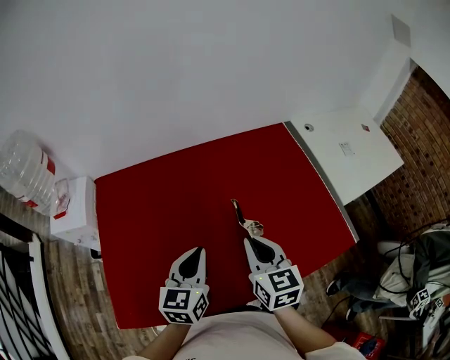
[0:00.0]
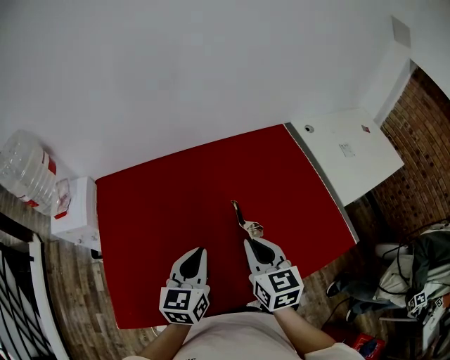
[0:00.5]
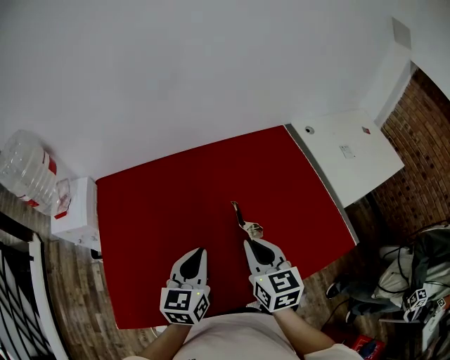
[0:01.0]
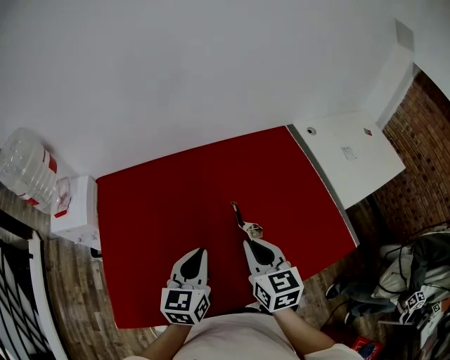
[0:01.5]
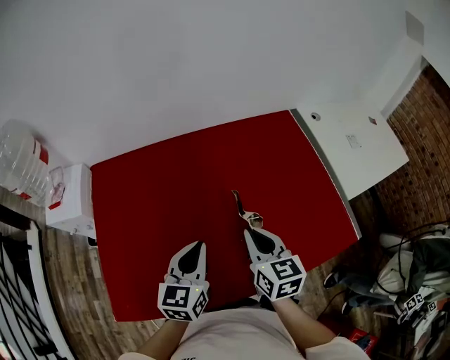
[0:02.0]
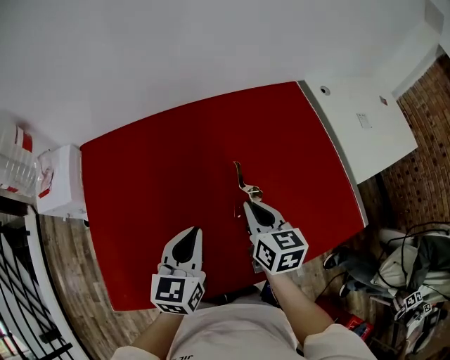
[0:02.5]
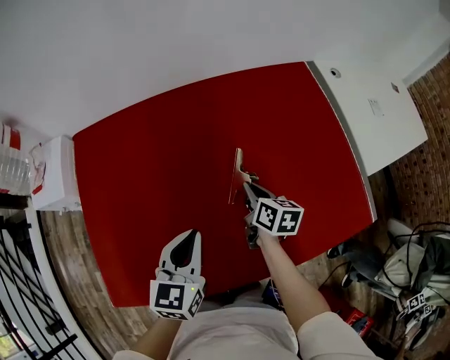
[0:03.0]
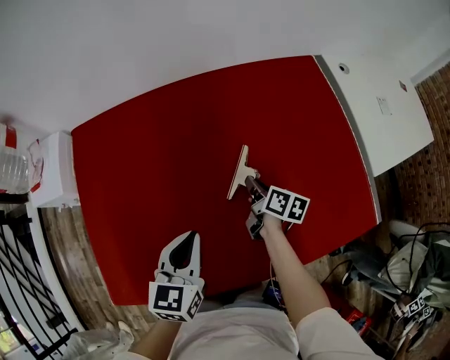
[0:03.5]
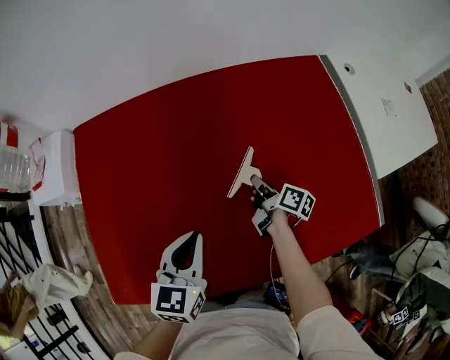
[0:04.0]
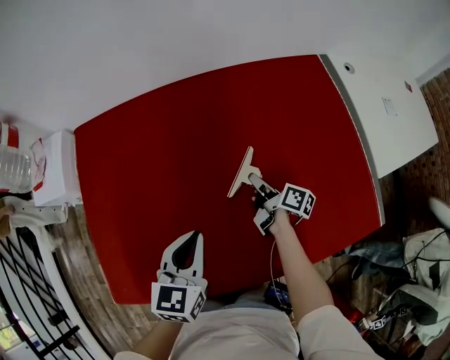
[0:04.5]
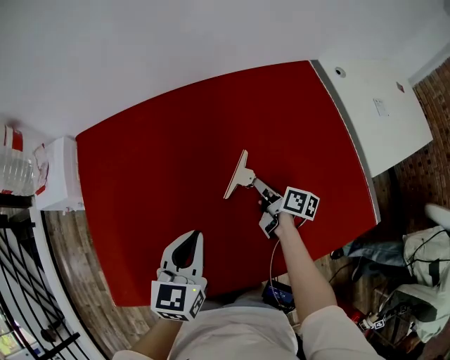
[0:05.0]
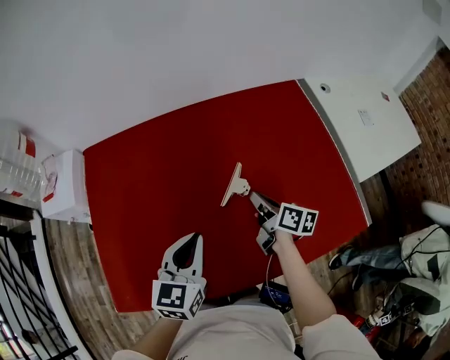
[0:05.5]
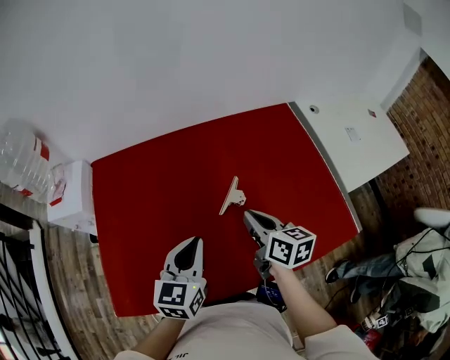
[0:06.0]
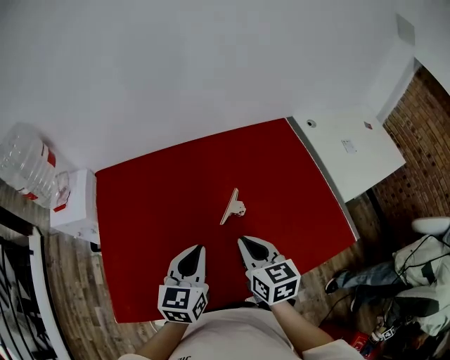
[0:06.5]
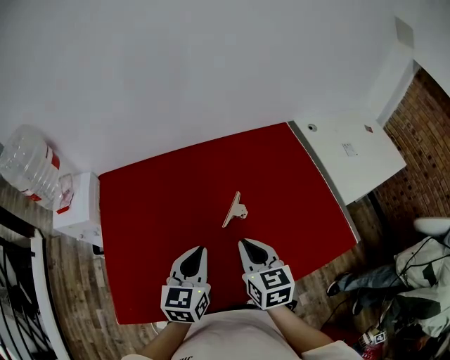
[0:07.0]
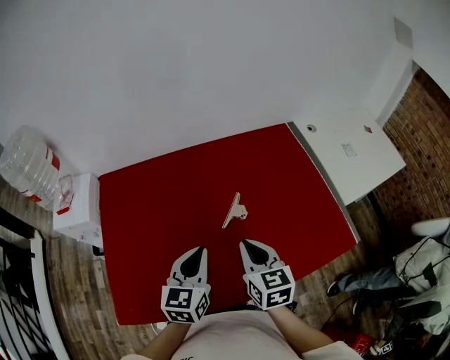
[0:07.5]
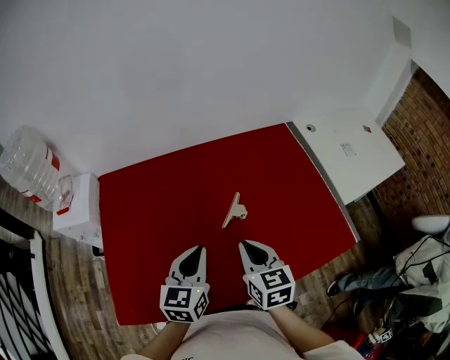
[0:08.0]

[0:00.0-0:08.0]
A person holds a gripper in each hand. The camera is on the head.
0:00.0 to 0:02.0: There are only small adjustments of the grippers.
0:02.0 to 0:04.0: The left gripper travels downward by roughly 10 cm, while the right gripper heads downward and forward, covering approximately 30 cm, and rolls clockwise, seen from behind, by roughly 50 degrees.
0:04.0 to 0:06.0: The left gripper heads upward, covering some 10 cm; the right gripper heads upward and backward, covering some 25 cm, rotates some 40 degrees, and opens, then closes again.
0:06.0 to 0:08.0: The right gripper shifts approximately 5 cm backward, and rotates about 20 degrees.

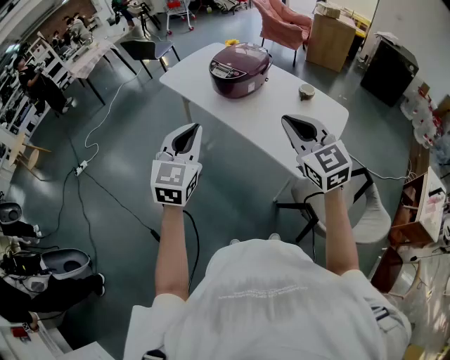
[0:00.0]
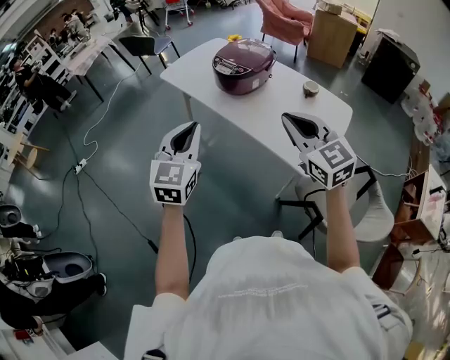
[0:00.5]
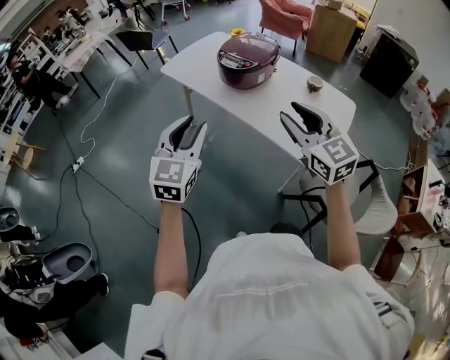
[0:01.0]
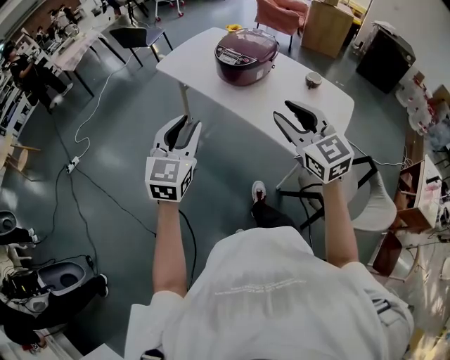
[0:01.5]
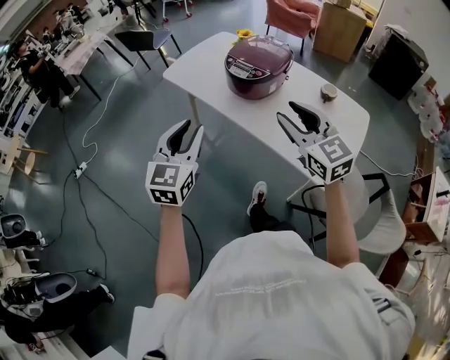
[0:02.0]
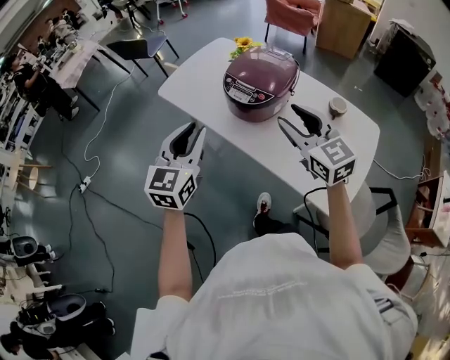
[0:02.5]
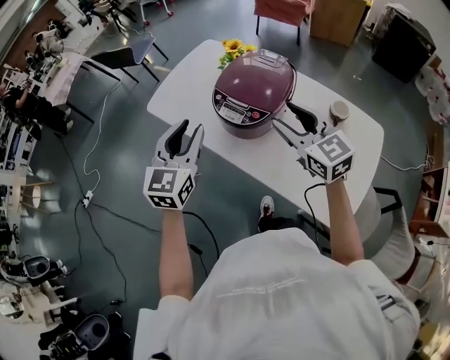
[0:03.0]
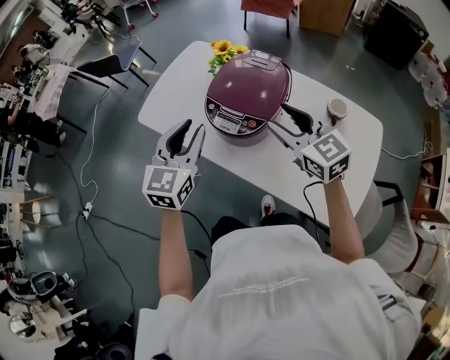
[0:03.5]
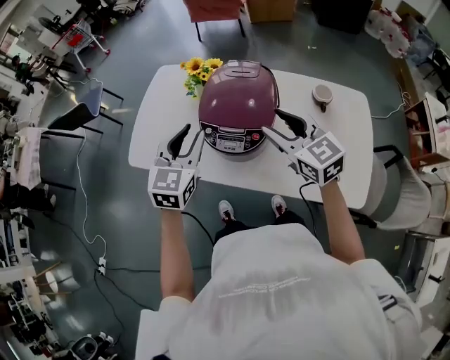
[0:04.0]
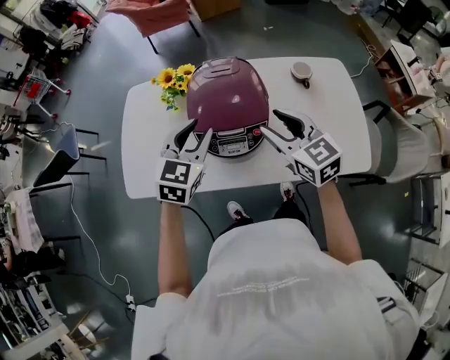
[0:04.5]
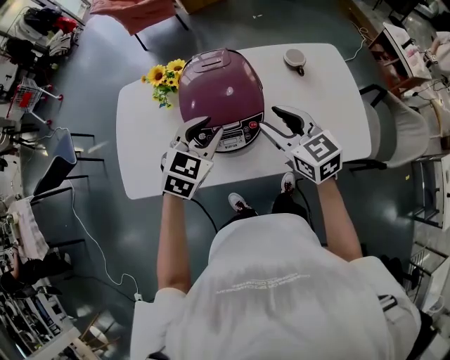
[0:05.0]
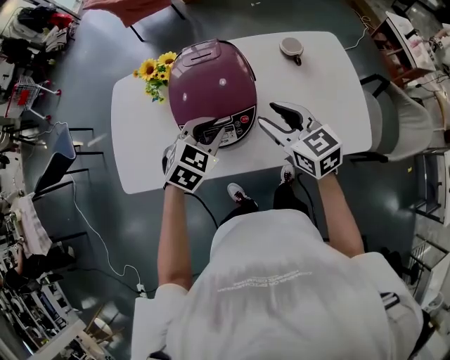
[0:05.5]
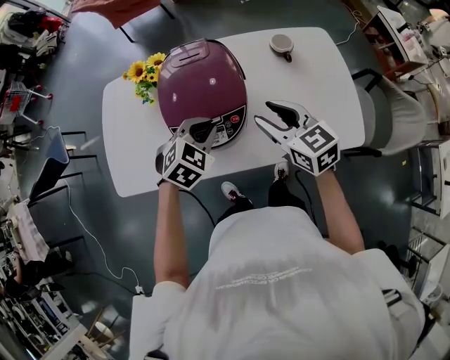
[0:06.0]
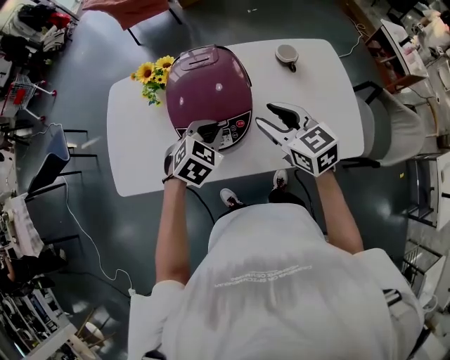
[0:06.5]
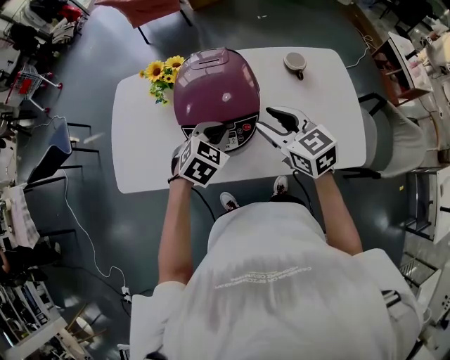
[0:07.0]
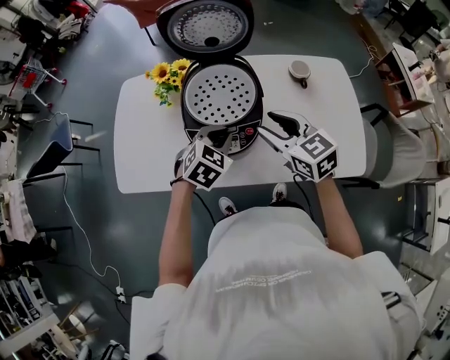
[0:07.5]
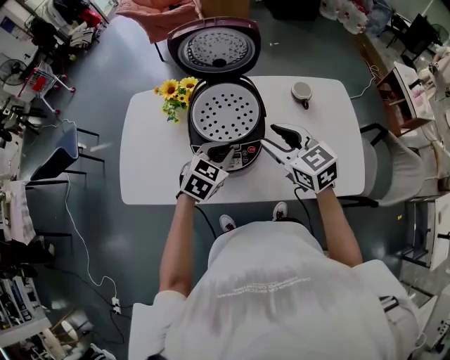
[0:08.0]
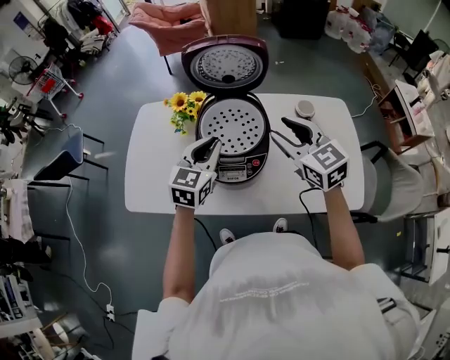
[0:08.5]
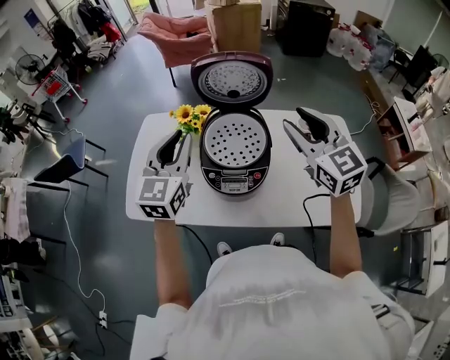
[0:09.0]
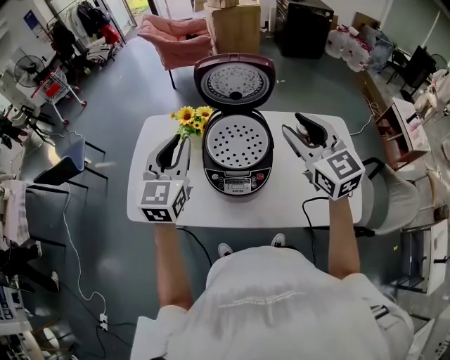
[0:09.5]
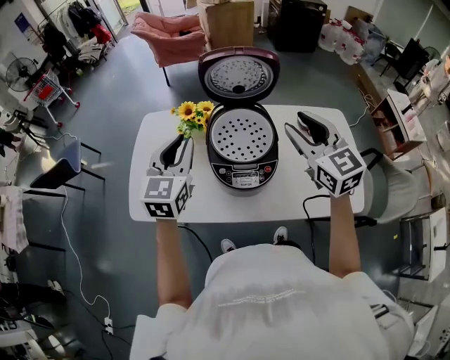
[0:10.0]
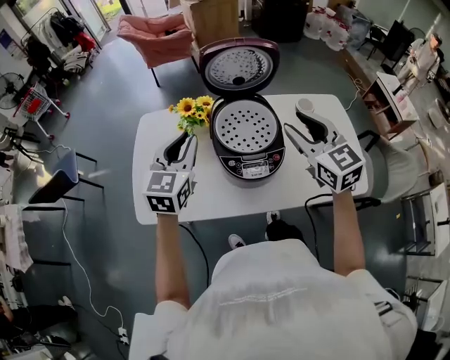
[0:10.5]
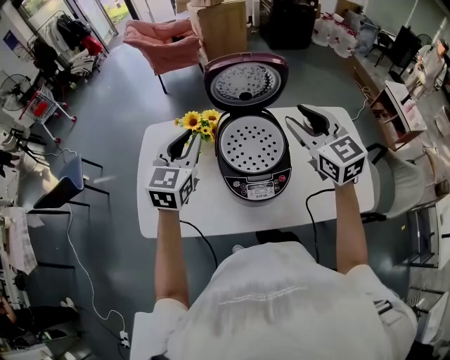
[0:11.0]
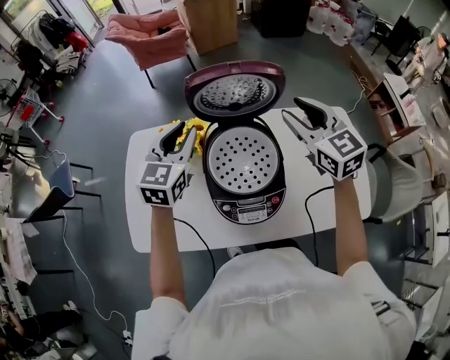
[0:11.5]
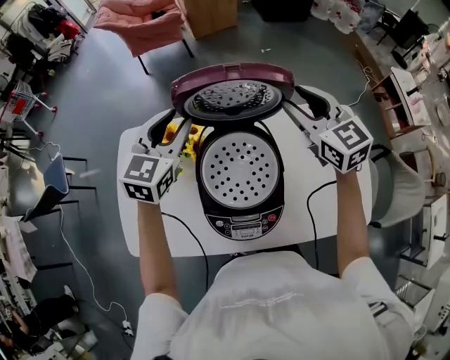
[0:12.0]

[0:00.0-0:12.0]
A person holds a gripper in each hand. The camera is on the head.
0:00.0 to 0:02.0: The two grippers go roughly 15 cm forward and to the left.
0:02.0 to 0:04.0: Both grippers move forward, approximately 35 cm. The left gripper changes its angle by about 30 degrees. The right gripper rotates approximately 20 degrees.
0:04.0 to 0:06.0: The right gripper heads downward, covering some 5 cm, and swivels approximately 20 degrees. The left gripper heads downward, covering about 15 cm, and swivels approximately 50 degrees.
0:06.0 to 0:08.0: There are only small adjustments of the grippers.
0:08.0 to 0:10.0: The left gripper heads upward and to the left, covering roughly 25 cm, and rotates some 40 degrees, while the right gripper moves upward, roughly 15 cm.
0:10.0 to 0:12.0: The two grippers go some 20 cm forward.

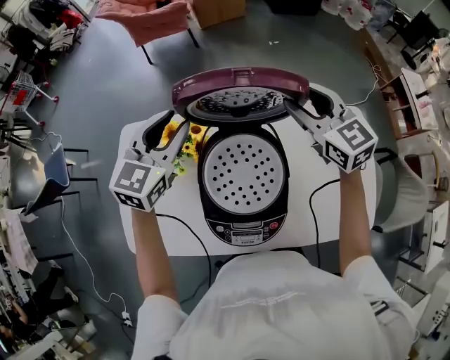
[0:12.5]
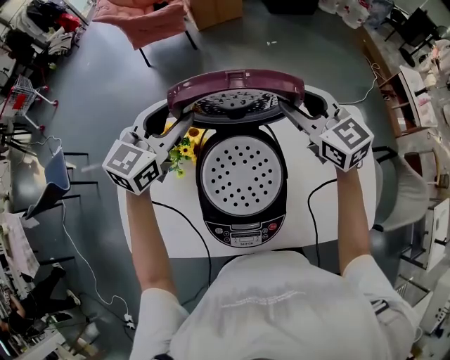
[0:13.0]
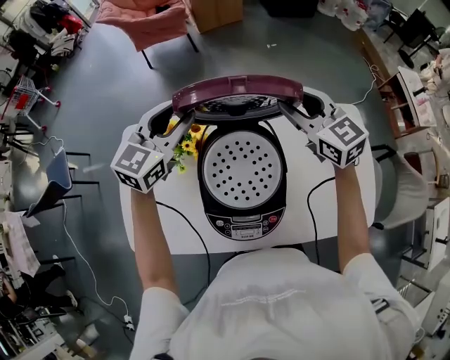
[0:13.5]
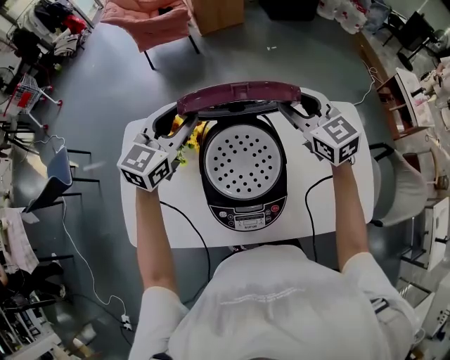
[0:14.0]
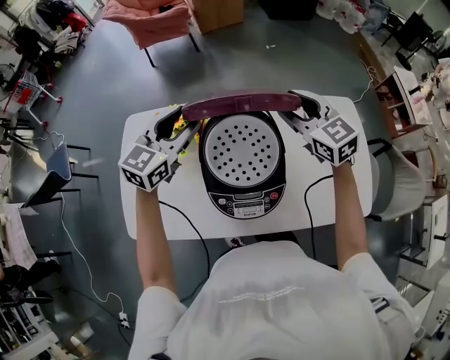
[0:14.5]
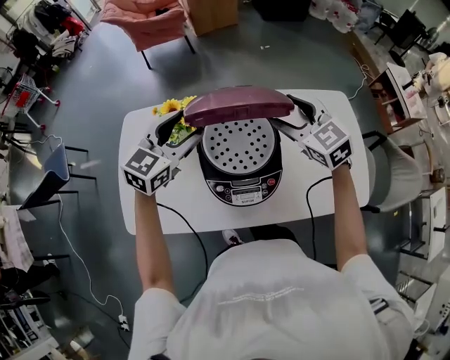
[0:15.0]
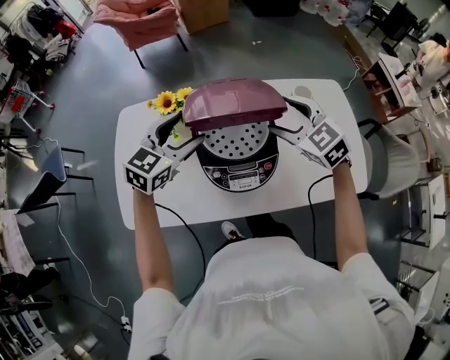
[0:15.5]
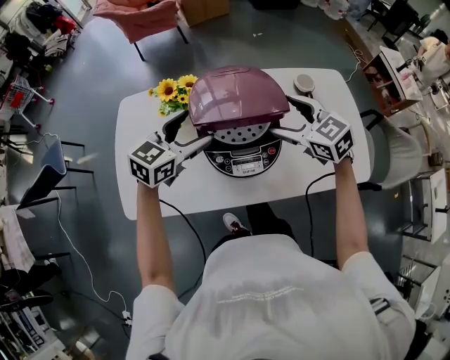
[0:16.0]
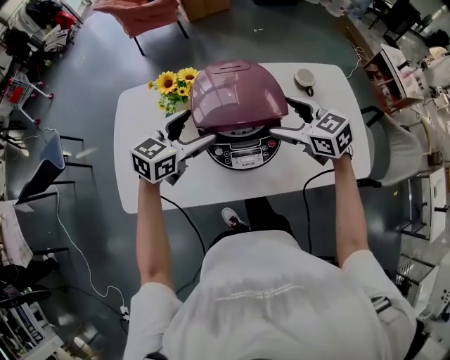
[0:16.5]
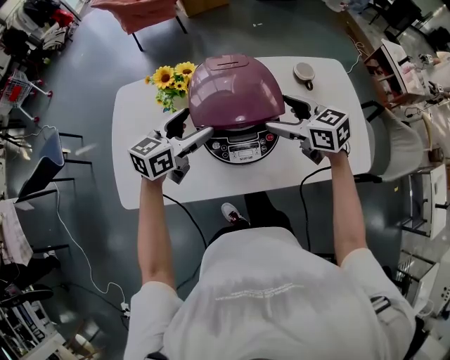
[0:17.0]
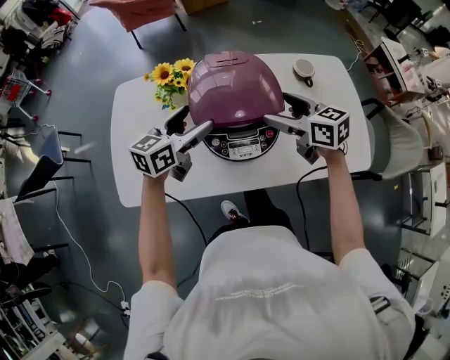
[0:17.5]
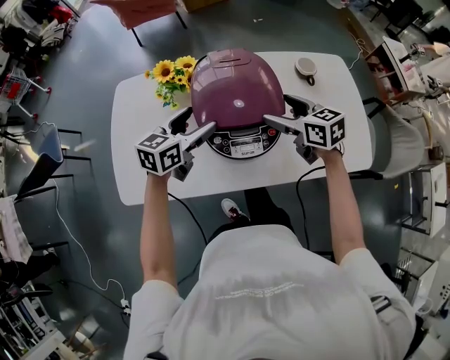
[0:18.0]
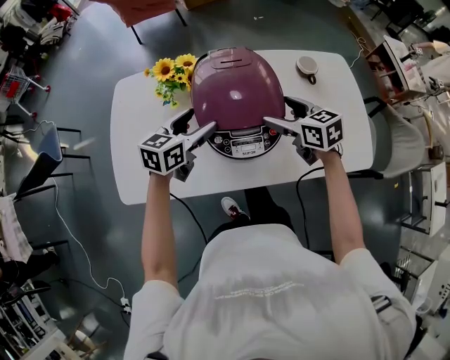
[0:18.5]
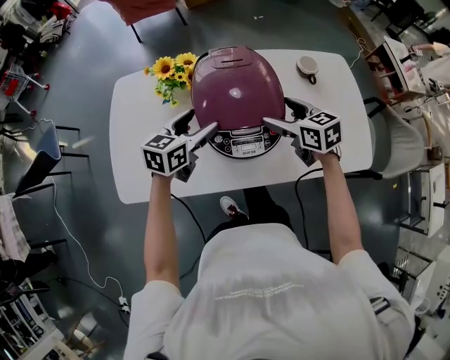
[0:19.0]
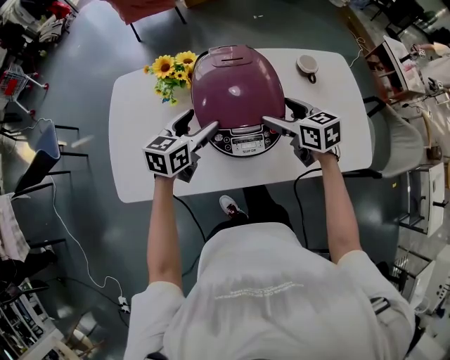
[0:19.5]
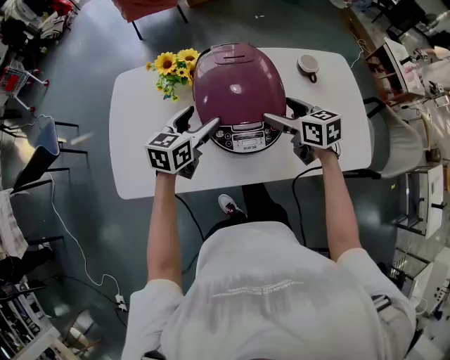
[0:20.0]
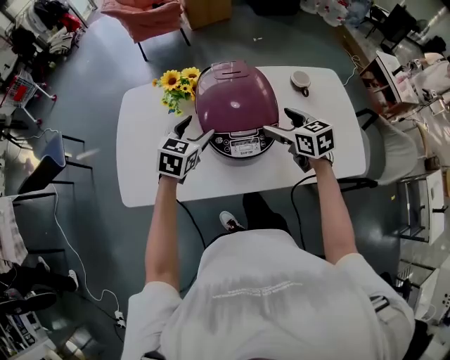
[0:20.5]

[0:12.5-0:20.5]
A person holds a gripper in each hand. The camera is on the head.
0:12.5 to 0:14.5: Both grippers move backward, roughly 5 cm.
0:14.5 to 0:16.5: The grippers both shift backward and downward by about 15 cm. The right gripper opens up, while the left gripper opens its fingers.
0:16.5 to 0:18.5: Both grippers move downward, some 5 cm.
0:18.5 to 0:20.5: The left gripper turns by approximately 20 degrees.
